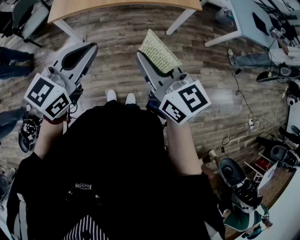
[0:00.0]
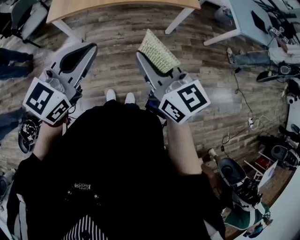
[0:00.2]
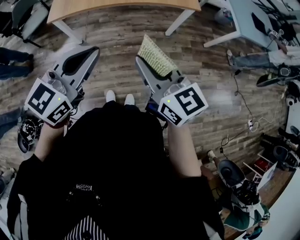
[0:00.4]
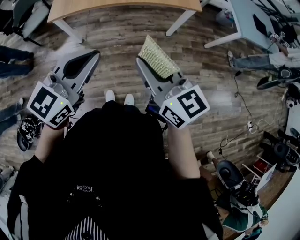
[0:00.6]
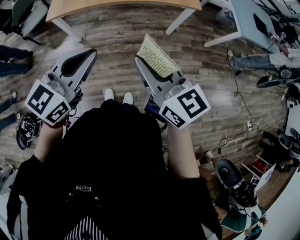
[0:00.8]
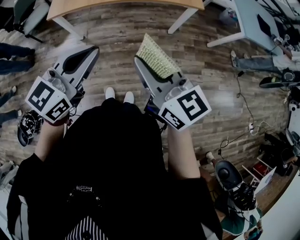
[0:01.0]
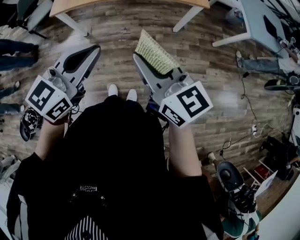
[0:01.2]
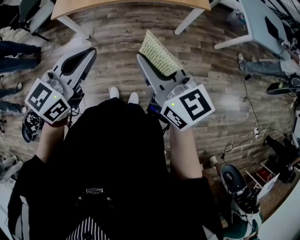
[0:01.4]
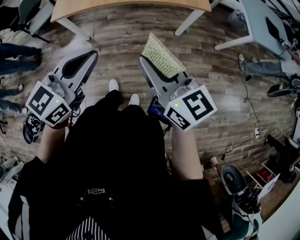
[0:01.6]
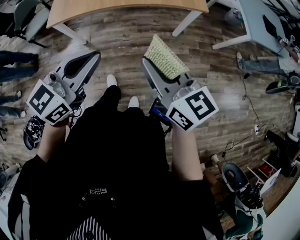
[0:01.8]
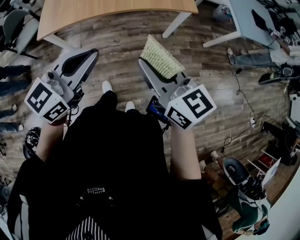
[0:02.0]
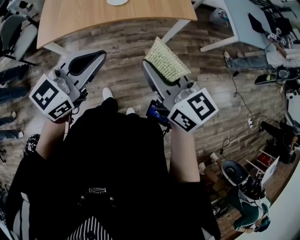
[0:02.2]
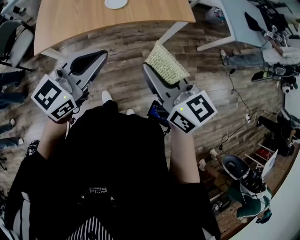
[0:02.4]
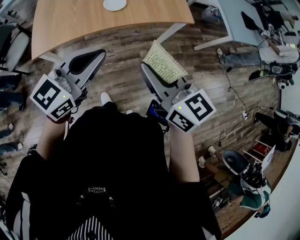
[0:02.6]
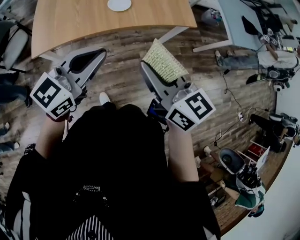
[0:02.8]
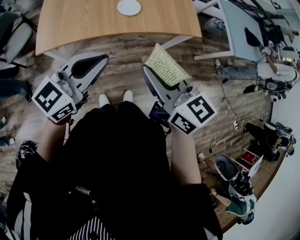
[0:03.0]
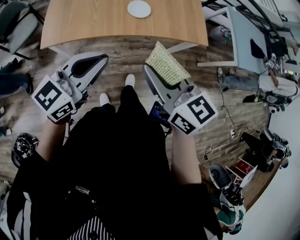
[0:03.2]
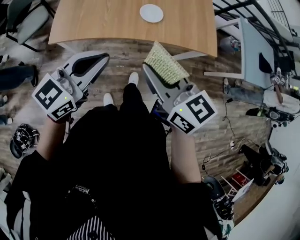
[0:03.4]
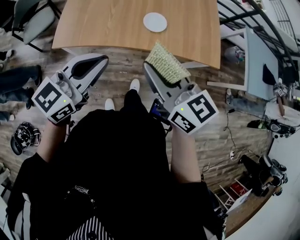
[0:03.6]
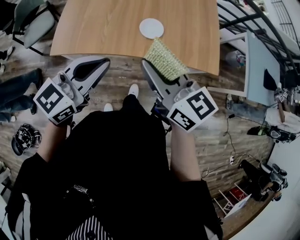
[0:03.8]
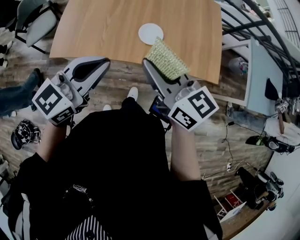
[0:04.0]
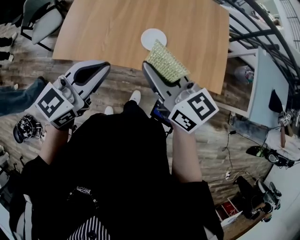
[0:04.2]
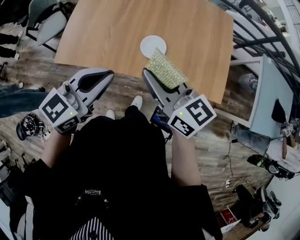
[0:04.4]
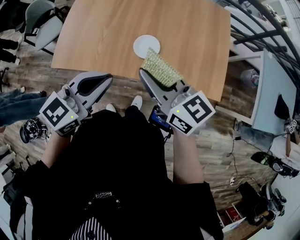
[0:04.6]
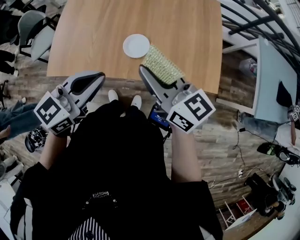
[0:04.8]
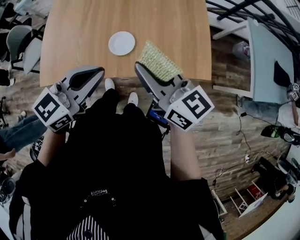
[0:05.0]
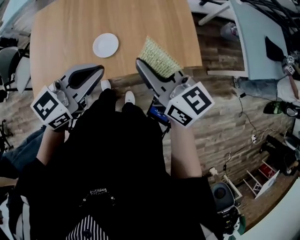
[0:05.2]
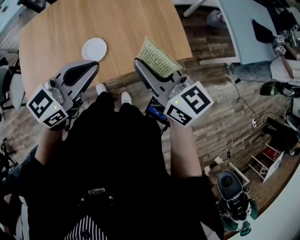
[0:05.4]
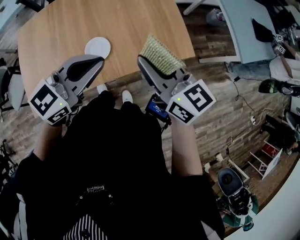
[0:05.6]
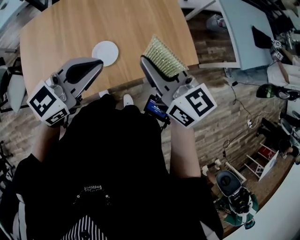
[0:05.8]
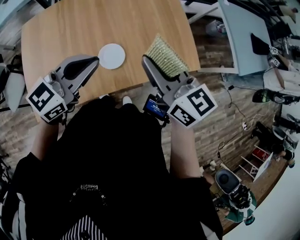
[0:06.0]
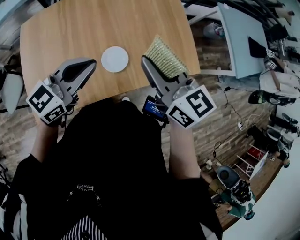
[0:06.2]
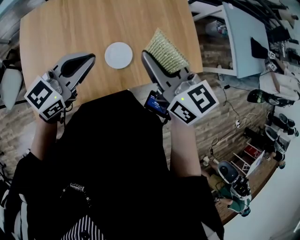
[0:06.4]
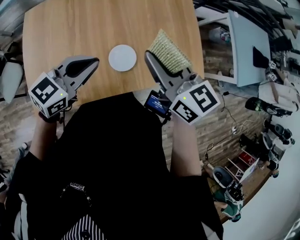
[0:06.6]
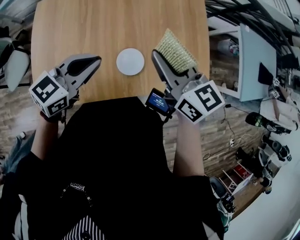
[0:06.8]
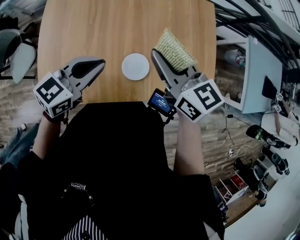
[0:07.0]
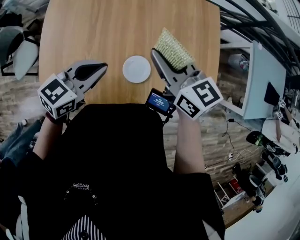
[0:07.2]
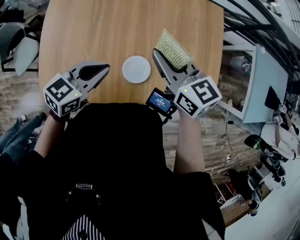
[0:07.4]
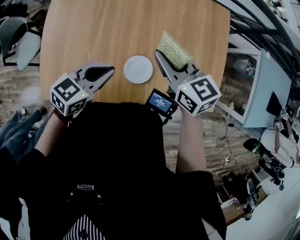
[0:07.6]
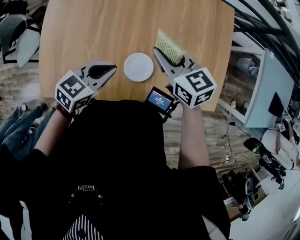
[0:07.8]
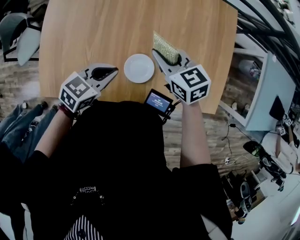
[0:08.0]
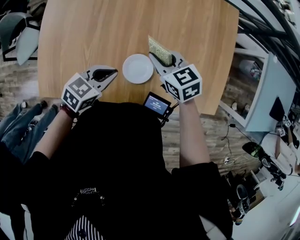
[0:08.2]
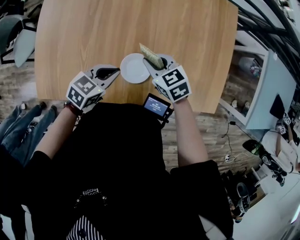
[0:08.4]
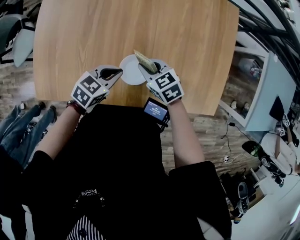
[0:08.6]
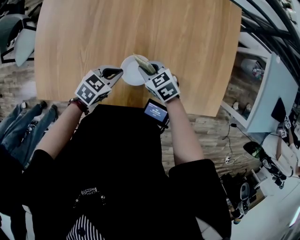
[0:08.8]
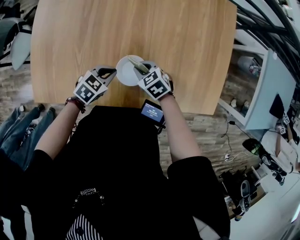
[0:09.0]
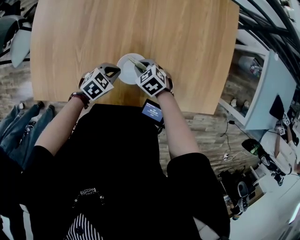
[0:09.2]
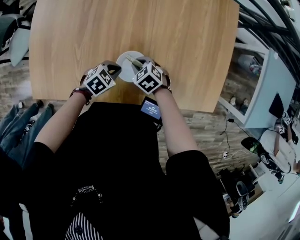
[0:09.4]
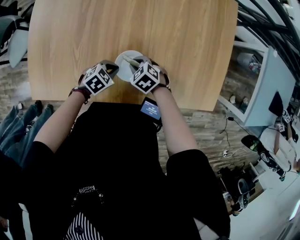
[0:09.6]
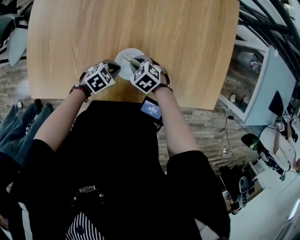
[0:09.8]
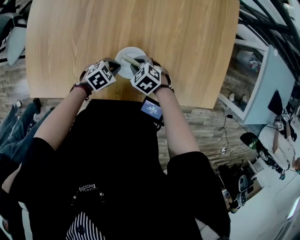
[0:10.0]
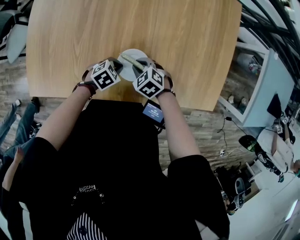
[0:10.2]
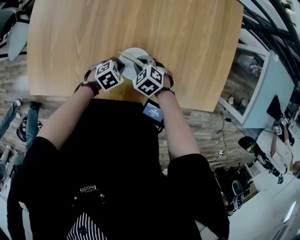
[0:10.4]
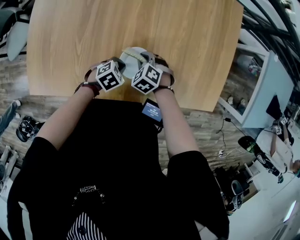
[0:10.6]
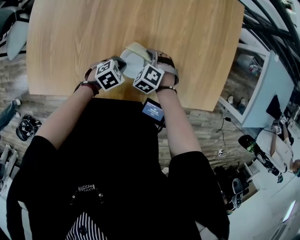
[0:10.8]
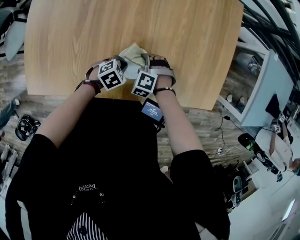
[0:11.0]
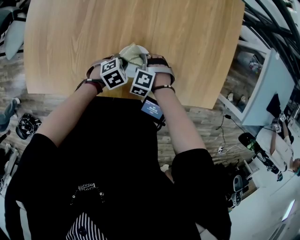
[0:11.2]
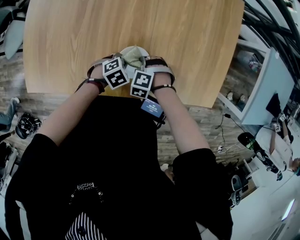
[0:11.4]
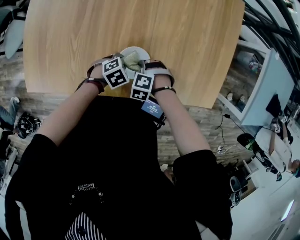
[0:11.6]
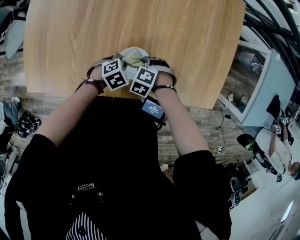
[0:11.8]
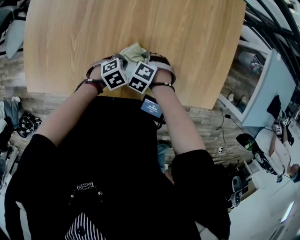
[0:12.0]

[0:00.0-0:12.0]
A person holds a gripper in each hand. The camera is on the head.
0:00.0 to 0:01.6: The left gripper heads downward, covering about 5 cm. Meanwhile the right gripper moves forward, some 5 cm.
0:01.6 to 0:03.0: Both grippers travel together forward and to the left, some 30 cm.
0:03.0 to 0:04.4: The two grippers go roughly 30 cm forward. The right gripper rotates about 20 degrees; the left gripper swivels about 20 degrees.
0:04.4 to 0:06.0: The left gripper moves some 25 cm, and changes its angle by roughly 30 degrees. Meanwhile the right gripper ends up about 20 cm from where it was, and changes its angle by approximately 30 degrees.
0:06.0 to 0:07.6: The right gripper moves forward, downward and to the left, roughly 25 cm, and turns by some 20 degrees. Meanwhile the left gripper is displaced downward, forward and to the left by roughly 20 cm, and rotates about 30 degrees.
0:07.6 to 0:09.0: Both grippers move downward, roughly 25 cm. The left gripper changes its angle by roughly 20 degrees; the right gripper angles its fingers downward, by approximately 30 degrees.
0:09.0 to 0:10.4: The left gripper heads downward, covering some 10 cm.
0:10.4 to 0:12.0: The right gripper changes its angle by some 30 degrees.

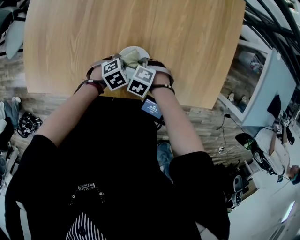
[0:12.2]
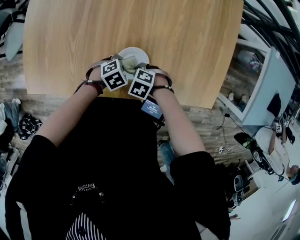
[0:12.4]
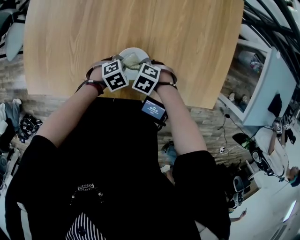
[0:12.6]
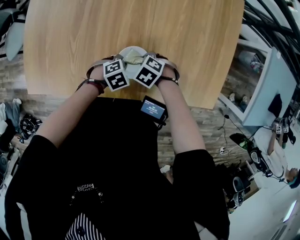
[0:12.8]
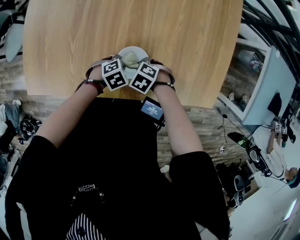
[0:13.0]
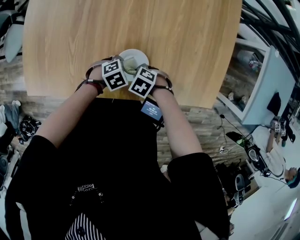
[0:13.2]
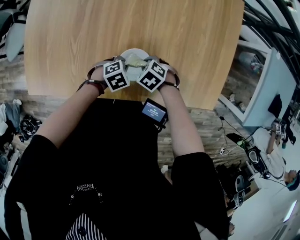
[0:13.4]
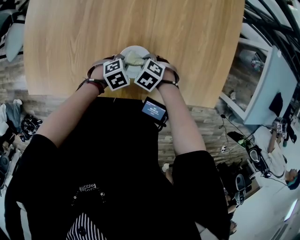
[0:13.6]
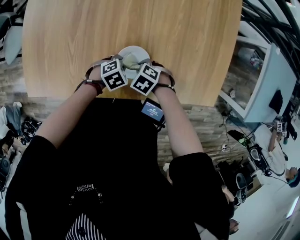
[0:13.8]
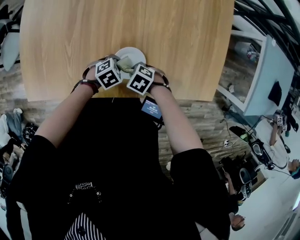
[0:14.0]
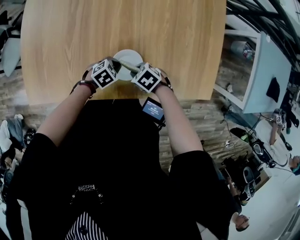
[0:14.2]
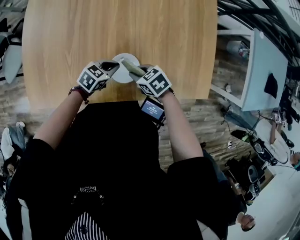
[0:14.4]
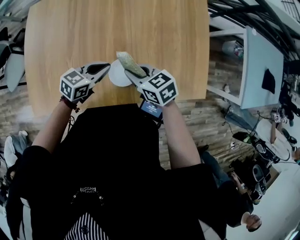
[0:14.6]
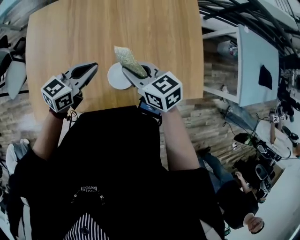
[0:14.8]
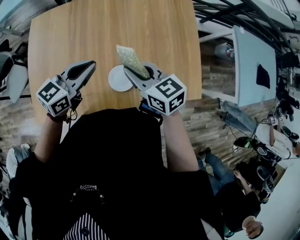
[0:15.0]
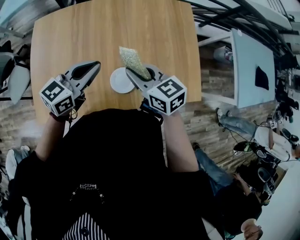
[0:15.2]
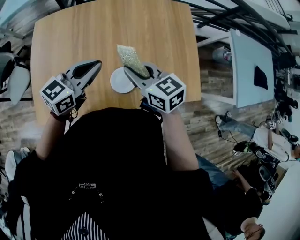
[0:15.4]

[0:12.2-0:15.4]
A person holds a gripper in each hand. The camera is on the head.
0:12.2 to 0:13.8: There are only small adjustments of the grippers.
0:13.8 to 0:15.4: Both grippers move upward, roughly 40 cm. The right gripper angles its fingers upward, by some 50 degrees; the left gripper tips its fingers upward by approximately 50 degrees.

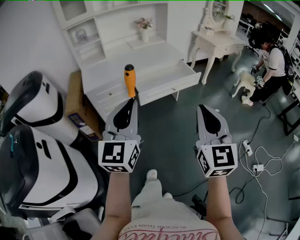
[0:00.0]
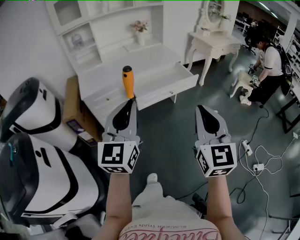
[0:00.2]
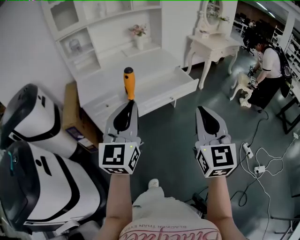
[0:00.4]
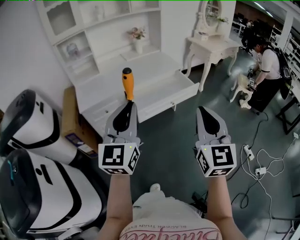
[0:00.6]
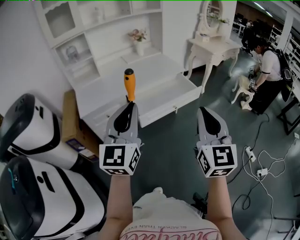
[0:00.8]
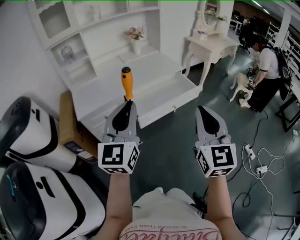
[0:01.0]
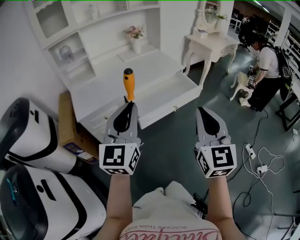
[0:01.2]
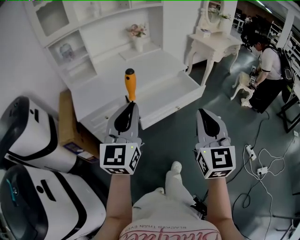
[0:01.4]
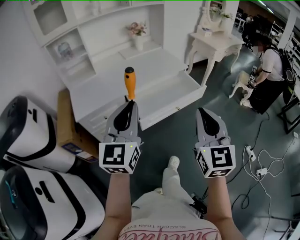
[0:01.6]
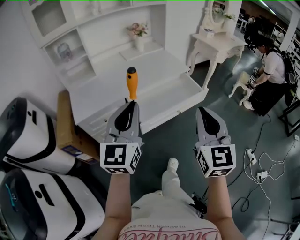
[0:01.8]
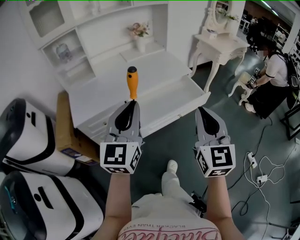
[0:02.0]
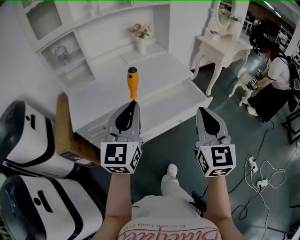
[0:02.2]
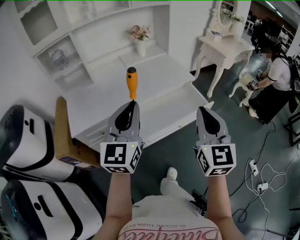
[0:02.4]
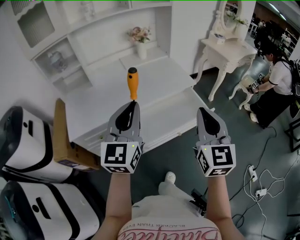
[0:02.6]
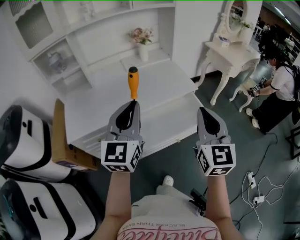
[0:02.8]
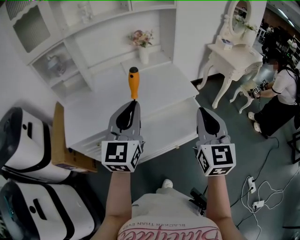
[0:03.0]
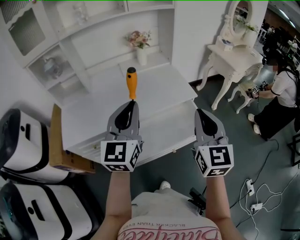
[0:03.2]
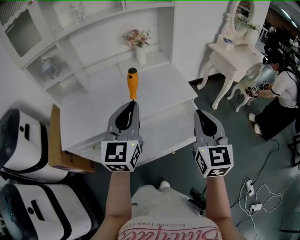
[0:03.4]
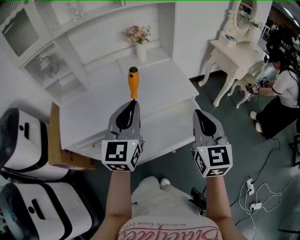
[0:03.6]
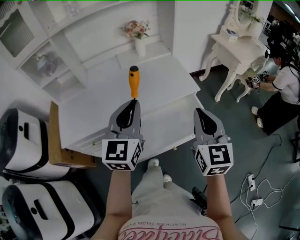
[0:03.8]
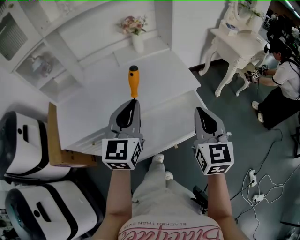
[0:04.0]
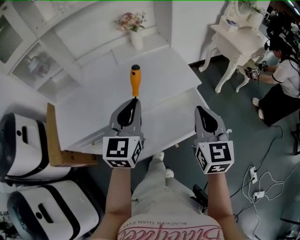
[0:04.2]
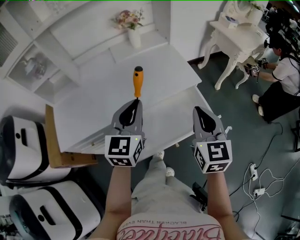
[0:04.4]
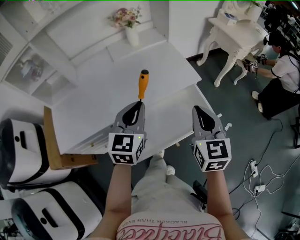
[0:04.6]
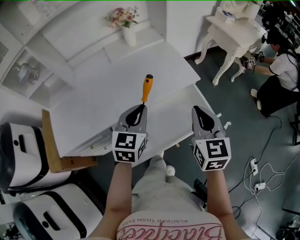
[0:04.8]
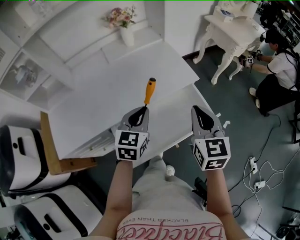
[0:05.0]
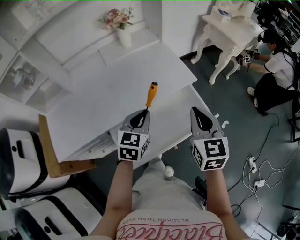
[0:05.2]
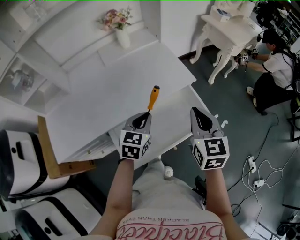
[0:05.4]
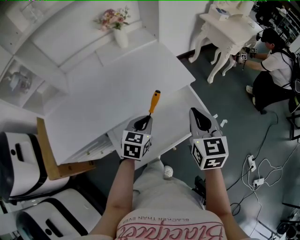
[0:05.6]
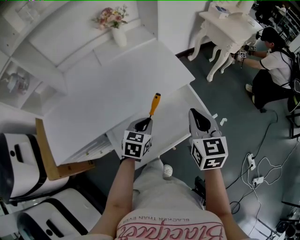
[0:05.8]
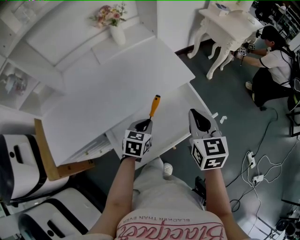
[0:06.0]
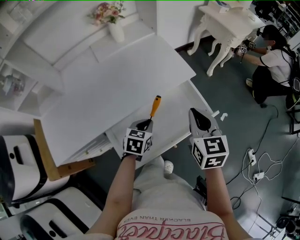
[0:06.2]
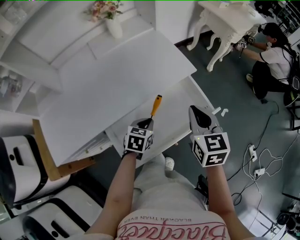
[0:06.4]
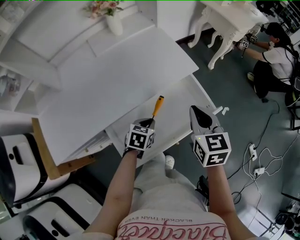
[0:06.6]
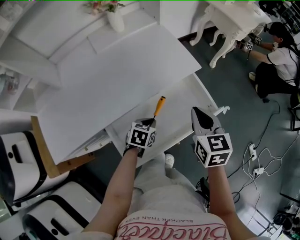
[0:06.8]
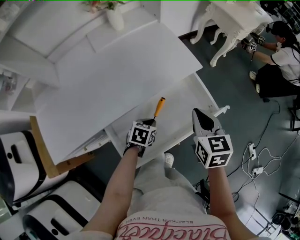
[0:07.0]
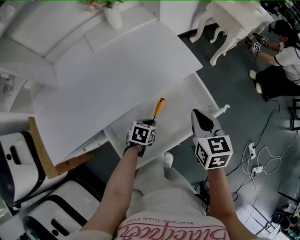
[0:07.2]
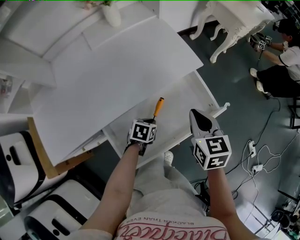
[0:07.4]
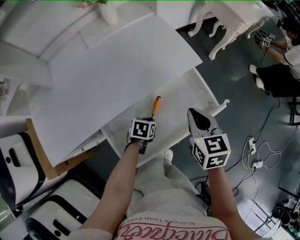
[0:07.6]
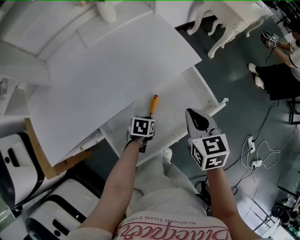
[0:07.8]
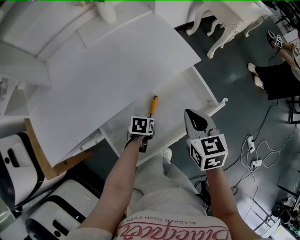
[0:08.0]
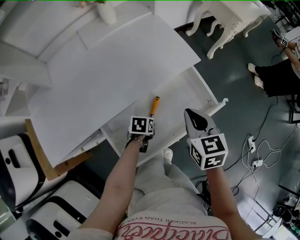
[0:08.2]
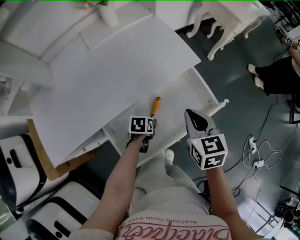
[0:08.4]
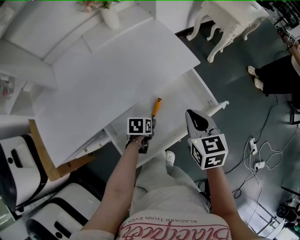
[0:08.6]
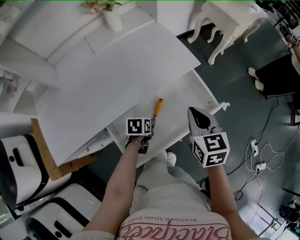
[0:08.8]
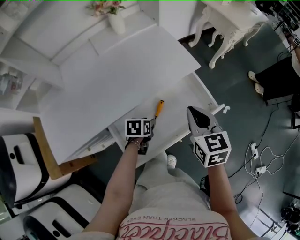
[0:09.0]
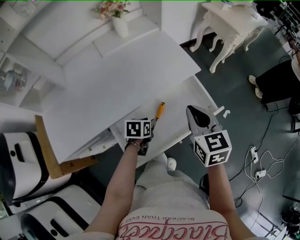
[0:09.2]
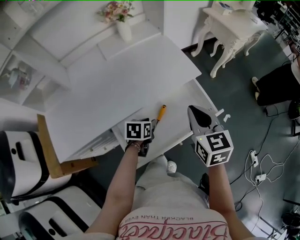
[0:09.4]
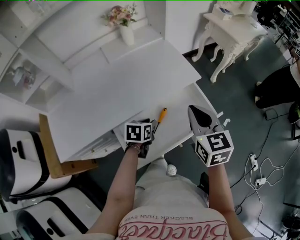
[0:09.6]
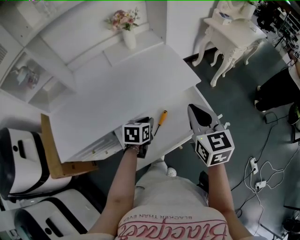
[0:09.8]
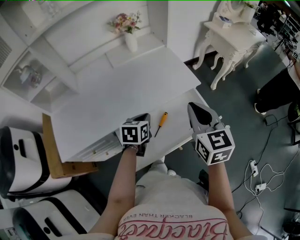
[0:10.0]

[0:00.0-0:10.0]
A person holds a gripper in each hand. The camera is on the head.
0:00.0 to 0:01.4: The grippers both shift forward by some 20 cm.
0:01.4 to 0:02.8: The grippers both shift forward by roughly 25 cm.
0:02.8 to 0:04.2: The grippers both shift forward and downward by roughly 15 cm.
0:04.2 to 0:05.8: The left gripper is displaced downward by approximately 20 cm, and tilts its fingers about 30 degrees downward. The right gripper travels downward by about 5 cm.
0:05.8 to 0:07.2: The left gripper goes approximately 15 cm downward, and changes its angle by approximately 30 degrees. Meanwhile the right gripper shifts some 10 cm downward.
0:07.2 to 0:08.6: The left gripper opens up.
0:08.6 to 0:10.0: Both grippers move upward, roughly 15 cm. The right gripper swivels roughly 20 degrees; the left gripper swivels about 30 degrees, and closes.
